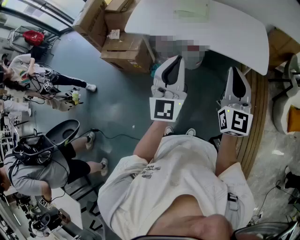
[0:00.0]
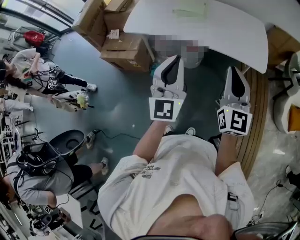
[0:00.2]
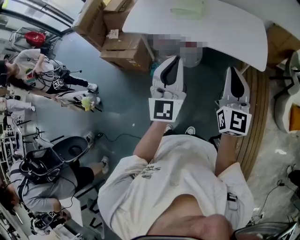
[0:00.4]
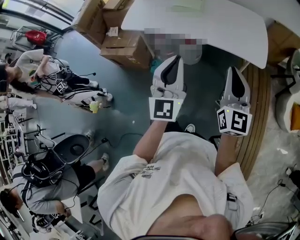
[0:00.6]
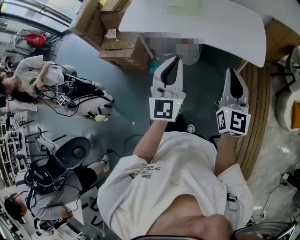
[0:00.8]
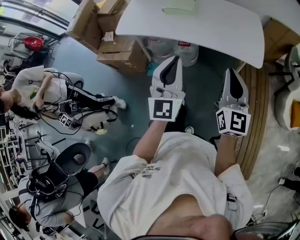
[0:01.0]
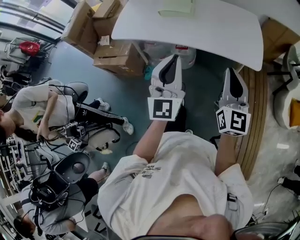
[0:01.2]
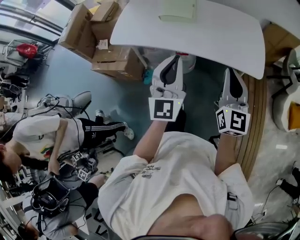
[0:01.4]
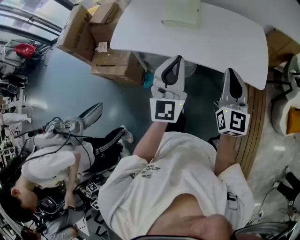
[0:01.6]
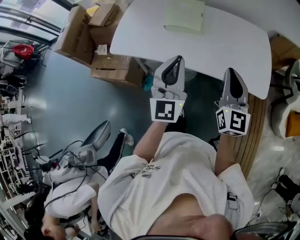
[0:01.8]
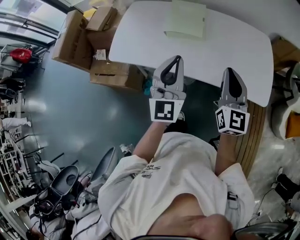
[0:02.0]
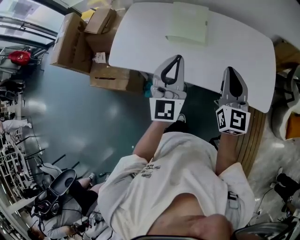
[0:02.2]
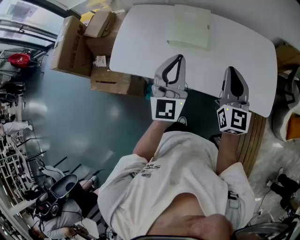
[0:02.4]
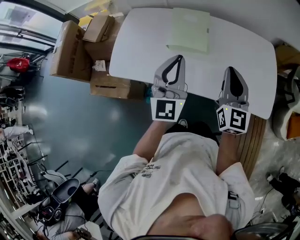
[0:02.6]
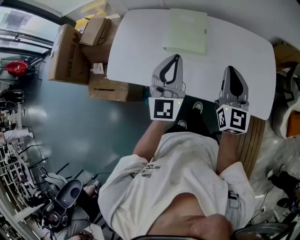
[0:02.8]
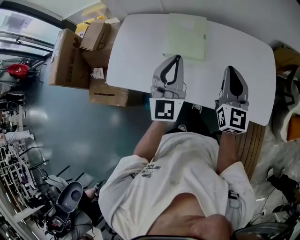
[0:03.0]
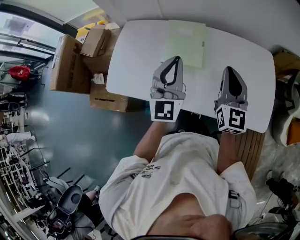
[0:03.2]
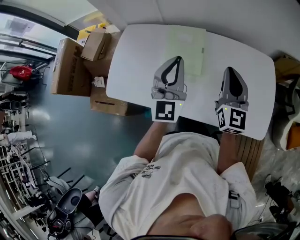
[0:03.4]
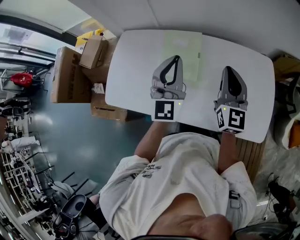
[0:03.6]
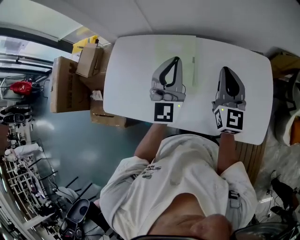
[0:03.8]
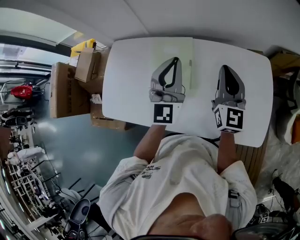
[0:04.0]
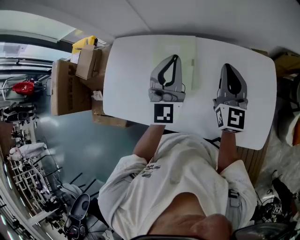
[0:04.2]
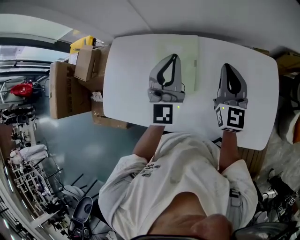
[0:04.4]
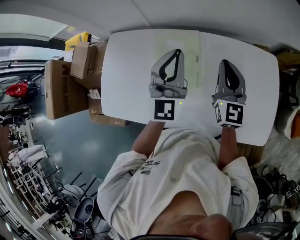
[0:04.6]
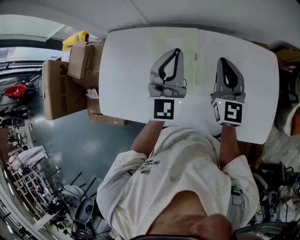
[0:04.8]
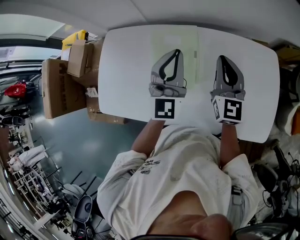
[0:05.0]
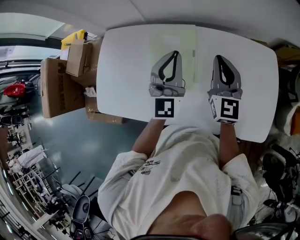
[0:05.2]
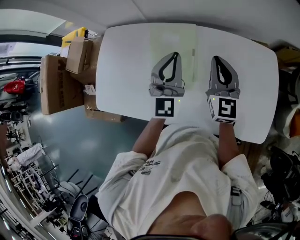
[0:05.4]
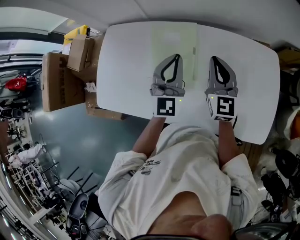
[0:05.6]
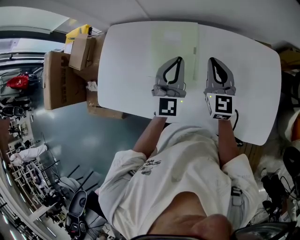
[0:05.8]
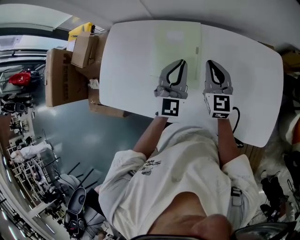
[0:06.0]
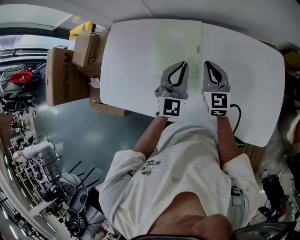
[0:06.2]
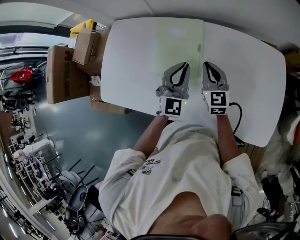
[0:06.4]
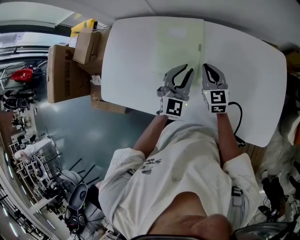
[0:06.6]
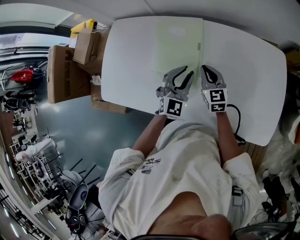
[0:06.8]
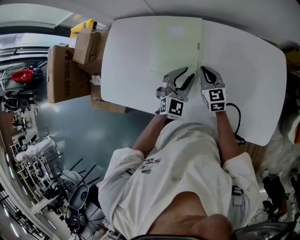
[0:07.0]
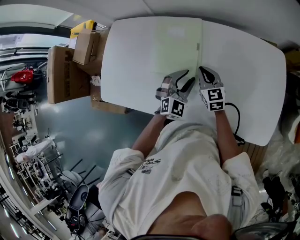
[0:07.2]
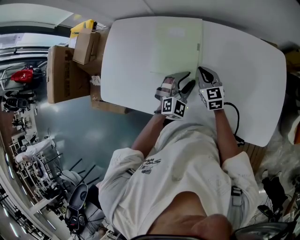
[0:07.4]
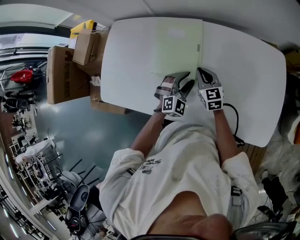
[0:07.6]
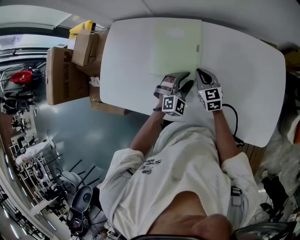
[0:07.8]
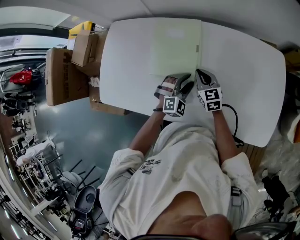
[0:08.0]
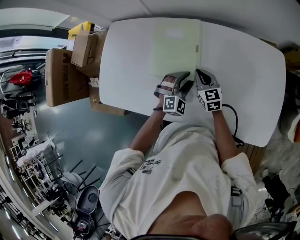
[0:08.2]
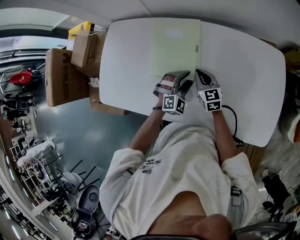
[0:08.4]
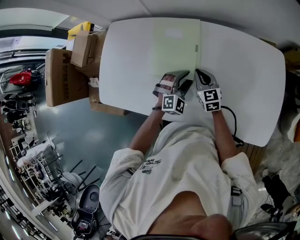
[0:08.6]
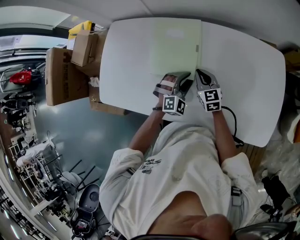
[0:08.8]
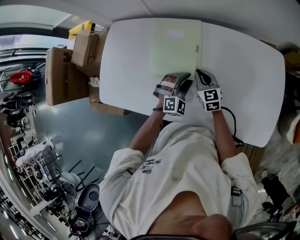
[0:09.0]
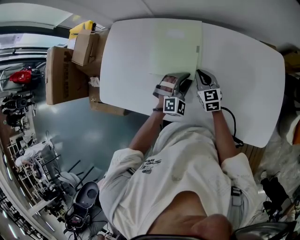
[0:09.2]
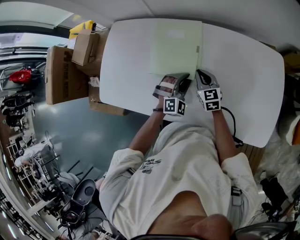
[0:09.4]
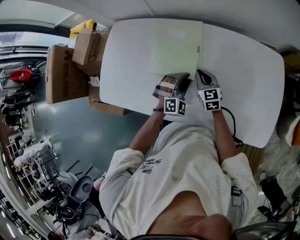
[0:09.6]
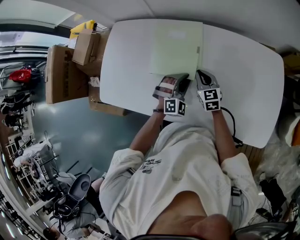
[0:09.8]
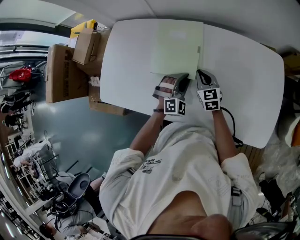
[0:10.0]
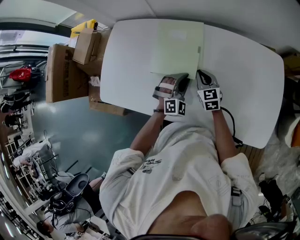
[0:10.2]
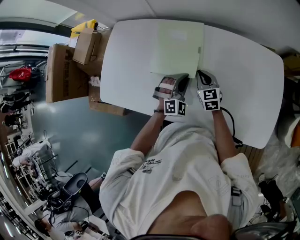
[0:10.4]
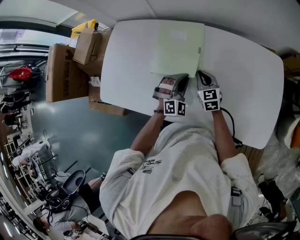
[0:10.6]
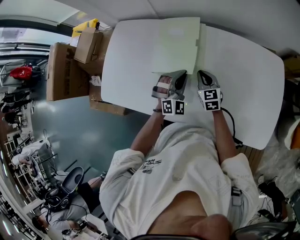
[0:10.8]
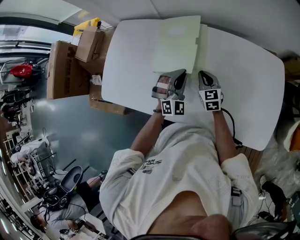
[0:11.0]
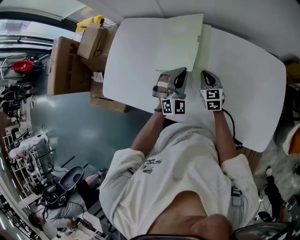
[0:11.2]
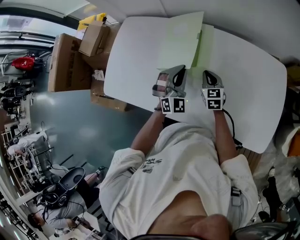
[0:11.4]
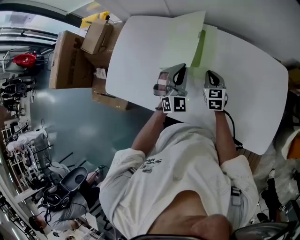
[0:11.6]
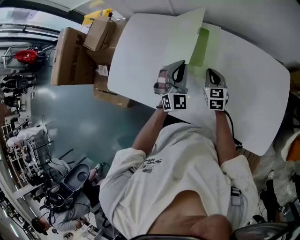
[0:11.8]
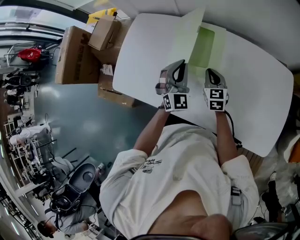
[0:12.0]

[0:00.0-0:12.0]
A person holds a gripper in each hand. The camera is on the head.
0:00.0 to 0:01.6: Both grippers move forward, roughly 15 cm.
0:01.6 to 0:03.0: The two grippers go roughly 30 cm forward.
0:03.0 to 0:04.4: Both grippers move forward, about 20 cm.
0:04.4 to 0:06.0: The right gripper goes approximately 15 cm downward and to the left, while the left gripper goes roughly 15 cm downward.
0:06.0 to 0:07.6: Both grippers move downward, about 15 cm. The left gripper rotates about 40 degrees, and opens its fingers; the right gripper turns by some 20 degrees.
0:07.6 to 0:09.0: The grippers make only small movements.
0:09.0 to 0:10.4: The left gripper closes up.
0:10.4 to 0:12.0: The left gripper is displaced upward and to the left by approximately 15 cm, and rotates some 30 degrees, while the right gripper moves approximately 5 cm.

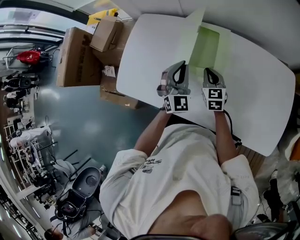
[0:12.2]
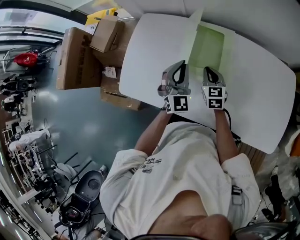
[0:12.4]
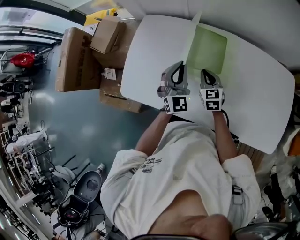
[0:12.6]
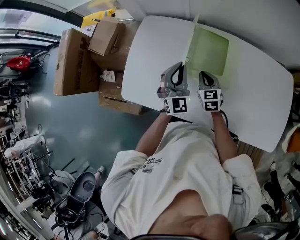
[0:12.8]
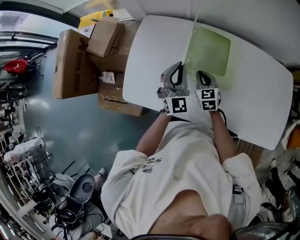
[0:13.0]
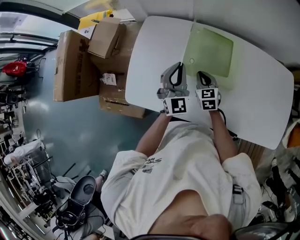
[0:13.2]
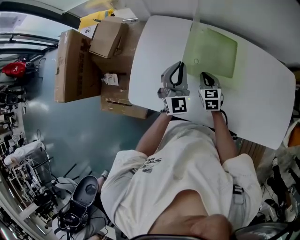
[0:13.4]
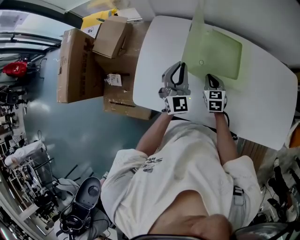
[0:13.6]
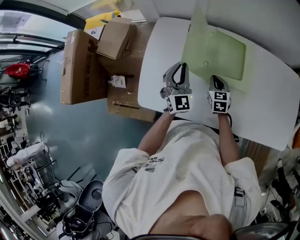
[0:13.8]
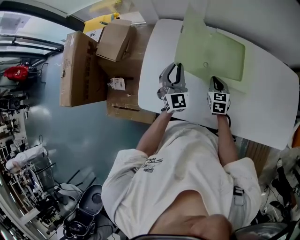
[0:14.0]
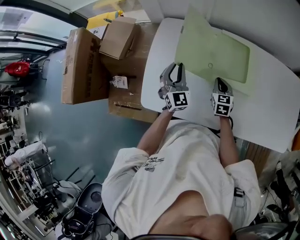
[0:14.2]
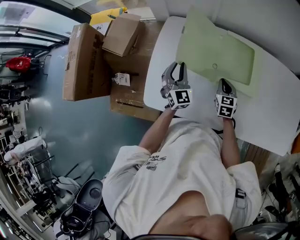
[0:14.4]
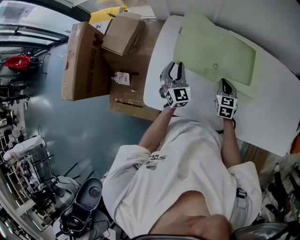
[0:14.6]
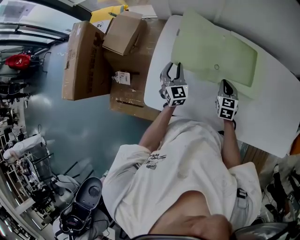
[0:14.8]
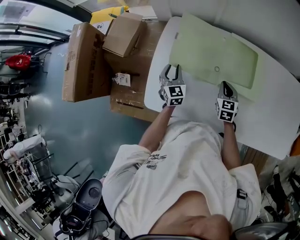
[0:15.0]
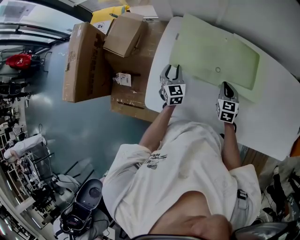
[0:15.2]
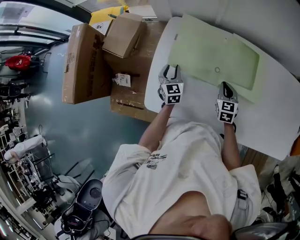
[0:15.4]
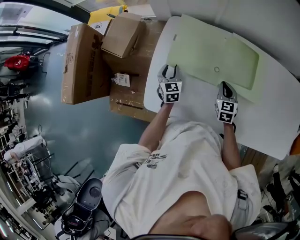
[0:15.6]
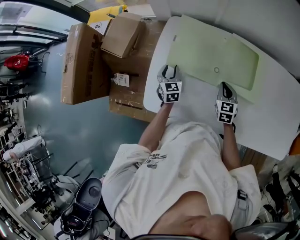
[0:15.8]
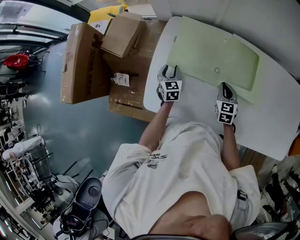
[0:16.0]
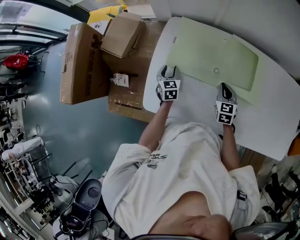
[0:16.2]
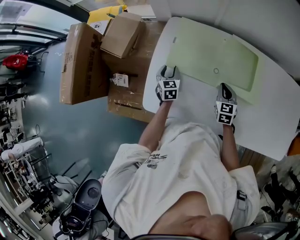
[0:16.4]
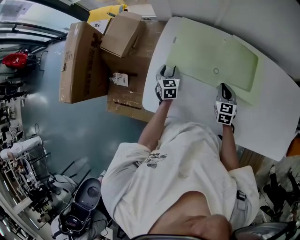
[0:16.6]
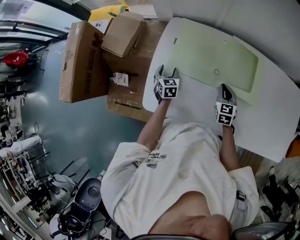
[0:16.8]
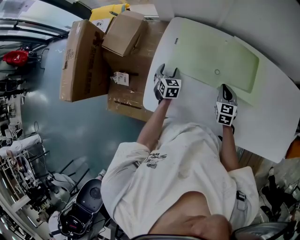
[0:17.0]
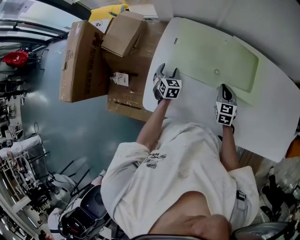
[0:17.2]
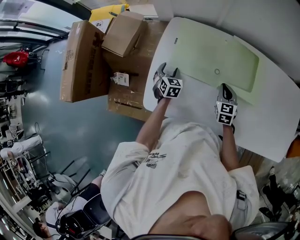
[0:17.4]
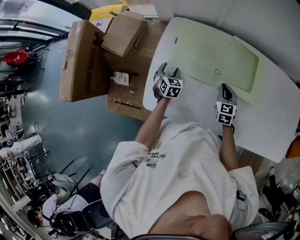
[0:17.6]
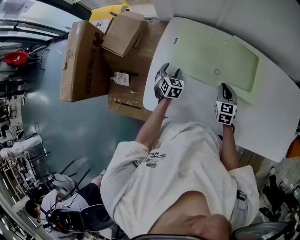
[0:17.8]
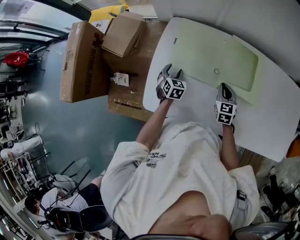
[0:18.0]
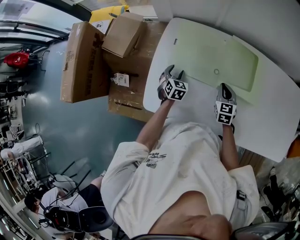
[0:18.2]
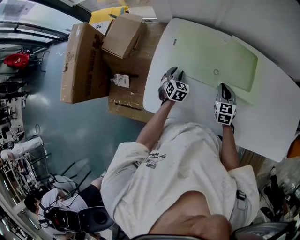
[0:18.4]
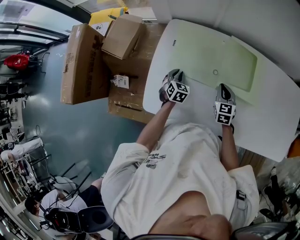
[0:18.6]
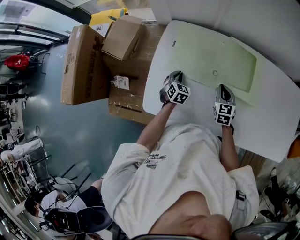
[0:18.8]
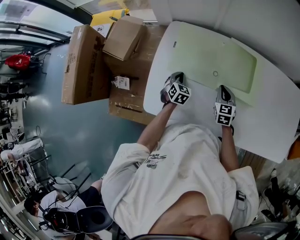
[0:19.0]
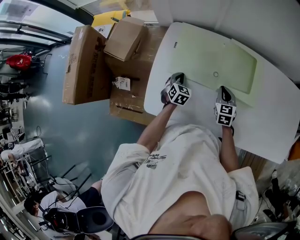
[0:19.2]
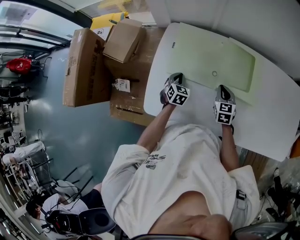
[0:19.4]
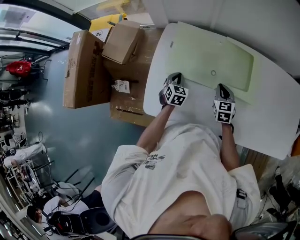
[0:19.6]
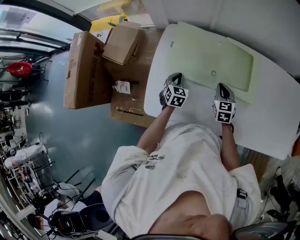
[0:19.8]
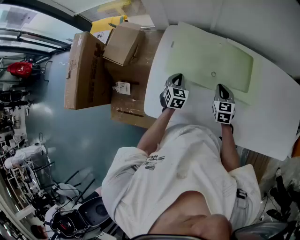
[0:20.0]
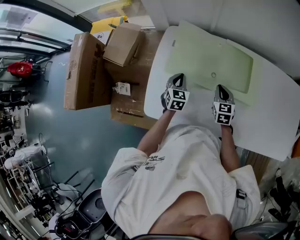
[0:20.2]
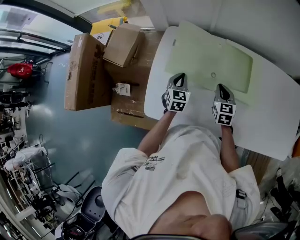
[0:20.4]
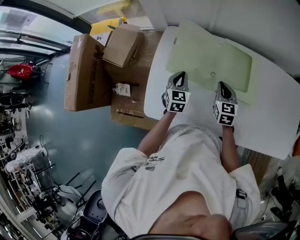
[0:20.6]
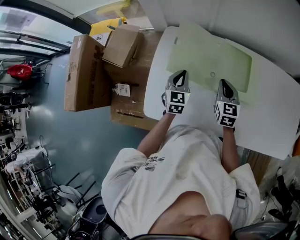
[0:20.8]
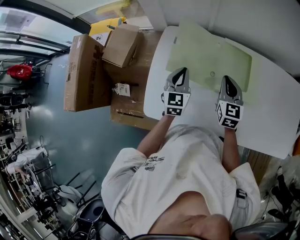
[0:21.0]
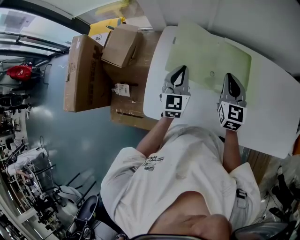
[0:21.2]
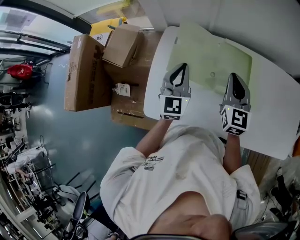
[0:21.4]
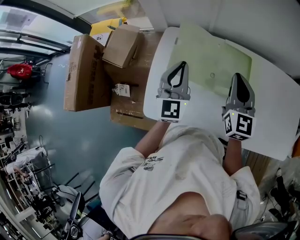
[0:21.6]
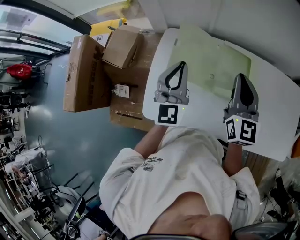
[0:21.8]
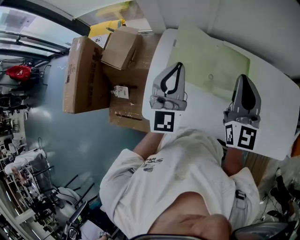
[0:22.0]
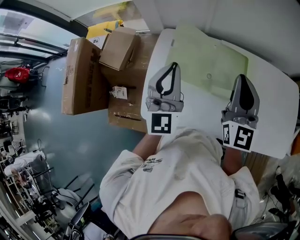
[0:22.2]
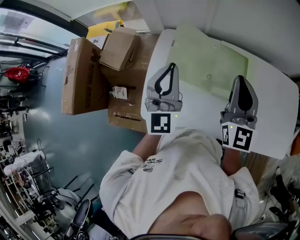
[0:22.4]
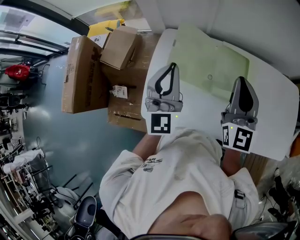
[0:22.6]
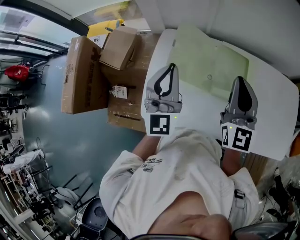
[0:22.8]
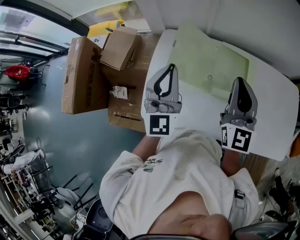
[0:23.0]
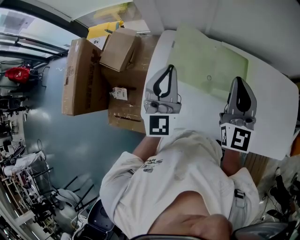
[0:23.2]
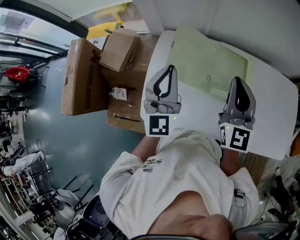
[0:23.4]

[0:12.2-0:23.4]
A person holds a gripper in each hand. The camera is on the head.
0:12.2 to 0:13.8: The right gripper travels to the left and downward by approximately 15 cm, while the left gripper shifts some 20 cm to the left.
0:13.8 to 0:15.4: The left gripper is displaced downward and to the left by approximately 20 cm, changes its angle by about 30 degrees, and opens its fingers.
0:15.4 to 0:17.0: The left gripper heads downward, covering some 5 cm, and opens.
0:17.0 to 0:18.6: The left gripper moves to the right, some 5 cm, and closes.
0:18.6 to 0:20.2: The left gripper shifts about 5 cm upward.
0:20.2 to 0:21.8: Both grippers travel together upward, approximately 30 cm. The left gripper points its fingers approximately 40 degrees further upward. Meanwhile the right gripper tilts its fingers roughly 30 degrees upward.
0:21.8 to 0:23.4: There are only small adjustments of the grippers.

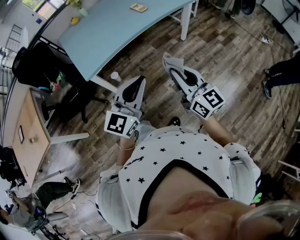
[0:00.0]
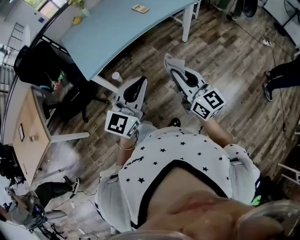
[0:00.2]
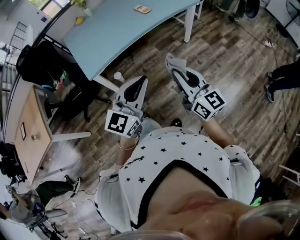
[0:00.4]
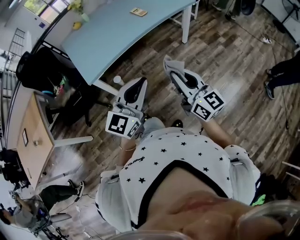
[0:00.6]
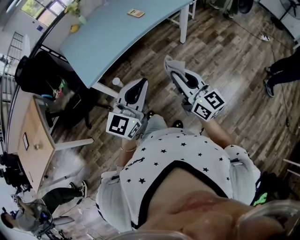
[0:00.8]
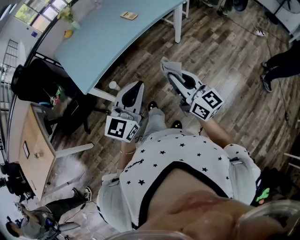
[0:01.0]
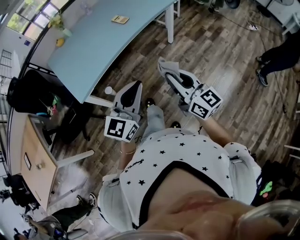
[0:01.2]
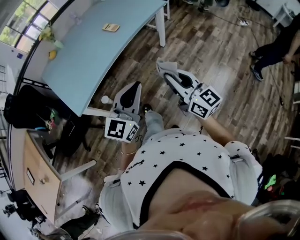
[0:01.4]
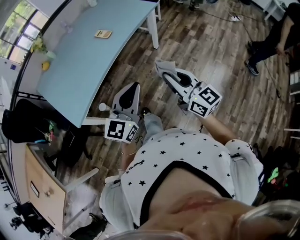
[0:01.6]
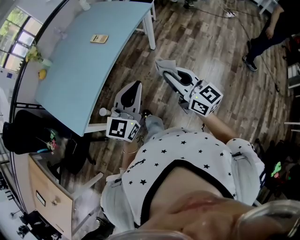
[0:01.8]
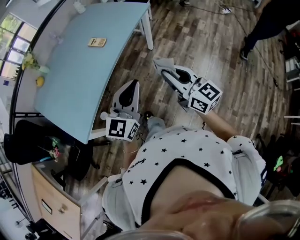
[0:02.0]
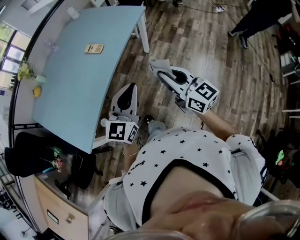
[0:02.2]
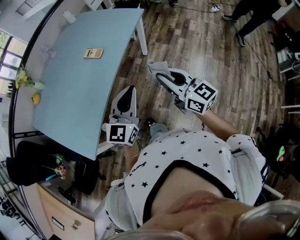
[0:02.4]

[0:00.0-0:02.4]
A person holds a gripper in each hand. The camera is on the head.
0:00.0 to 0:01.2: The right gripper changes place by some 5 cm. Meanwhile the left gripper travels forward by roughly 5 cm.
0:01.2 to 0:02.4: Both grippers move forward, some 20 cm.
